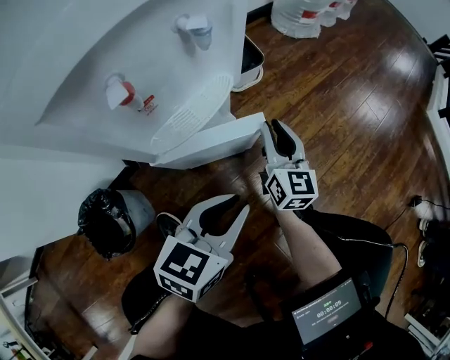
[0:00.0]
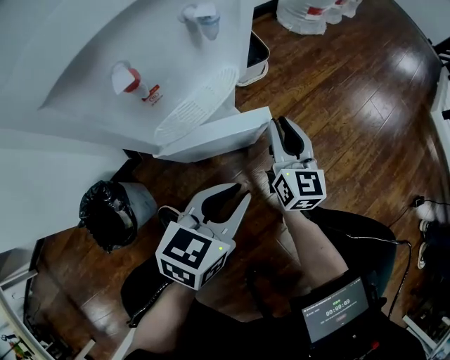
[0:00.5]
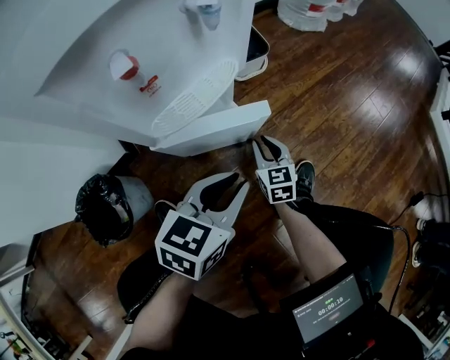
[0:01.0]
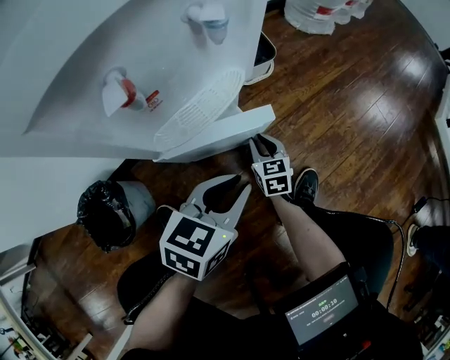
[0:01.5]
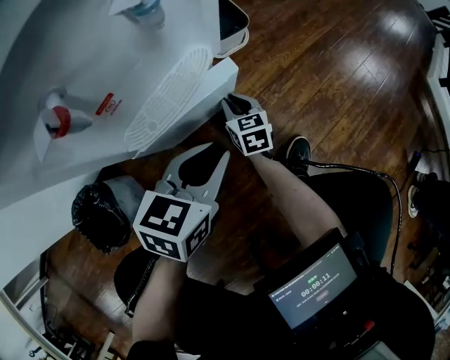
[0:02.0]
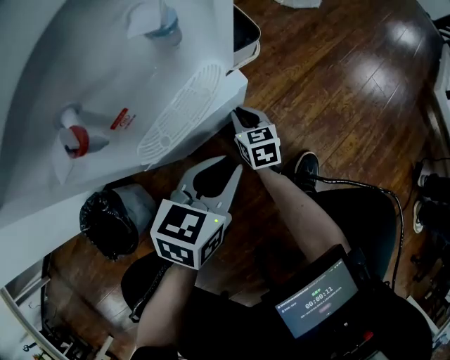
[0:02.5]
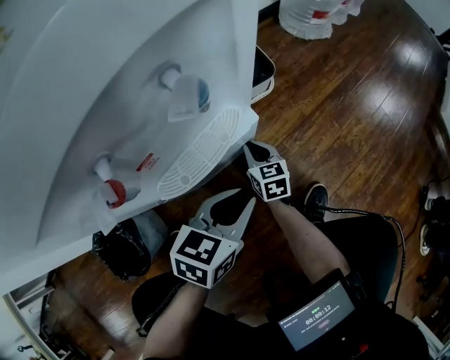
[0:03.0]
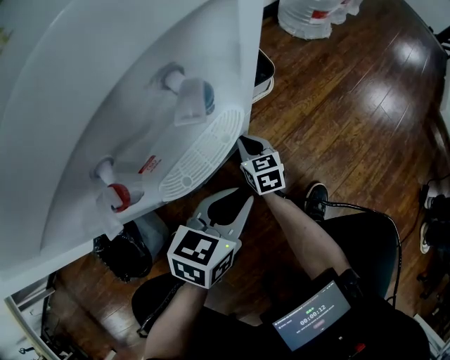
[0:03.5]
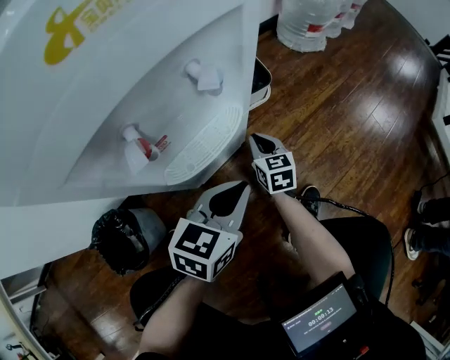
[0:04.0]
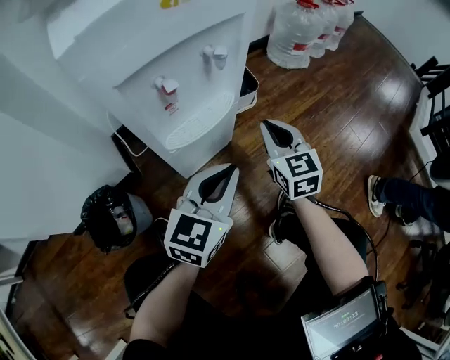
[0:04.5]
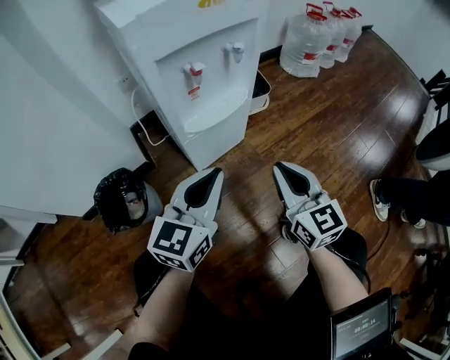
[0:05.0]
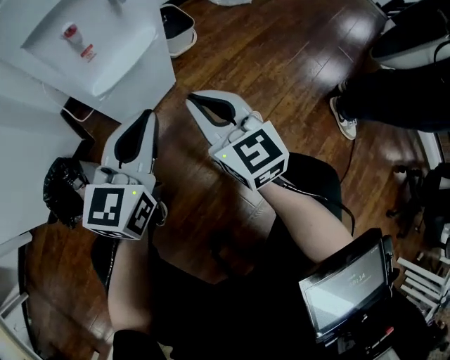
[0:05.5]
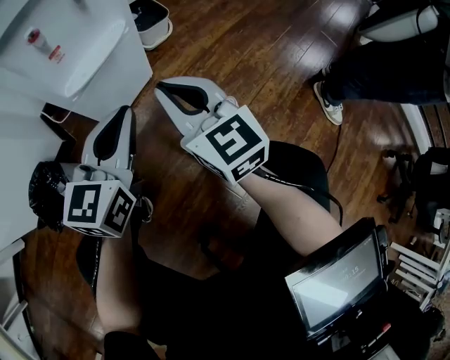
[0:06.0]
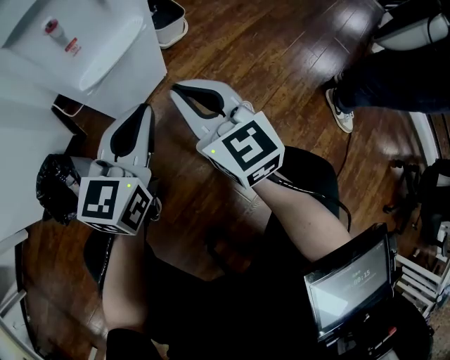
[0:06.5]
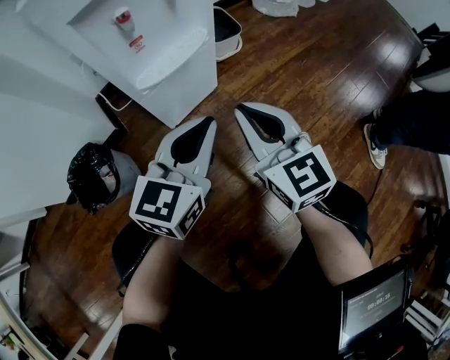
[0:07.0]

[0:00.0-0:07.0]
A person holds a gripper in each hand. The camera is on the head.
0:00.0 to 0:02.0: The right gripper goes some 20 cm downward and to the left, and swivels about 30 degrees; the left gripper moves forward, approximately 5 cm.
0:02.0 to 0:03.5: There are only small adjustments of the grippers.
0:03.5 to 0:05.0: The right gripper travels upward and backward by approximately 40 cm, and turns by approximately 30 degrees; the left gripper heads upward and backward, covering some 20 cm, and turns by approximately 30 degrees.
0:05.0 to 0:07.0: The left gripper goes roughly 5 cm to the right.

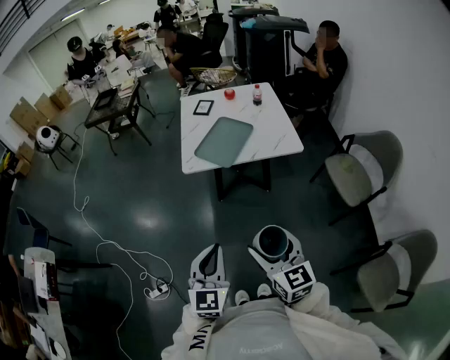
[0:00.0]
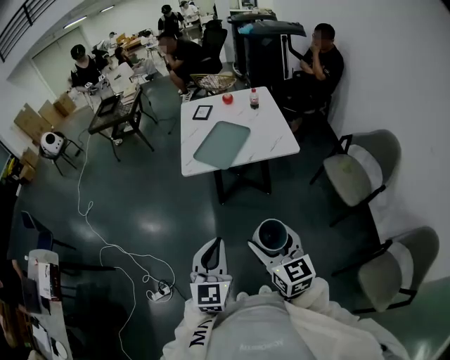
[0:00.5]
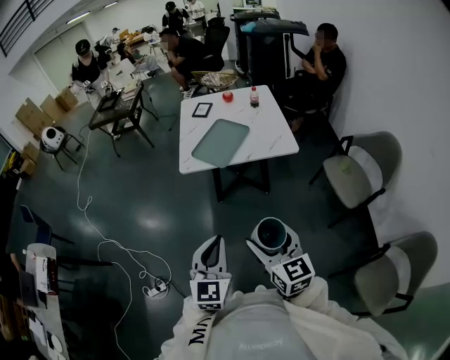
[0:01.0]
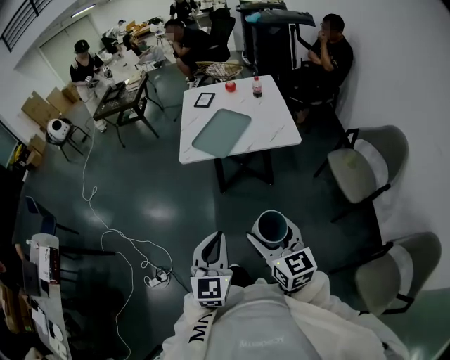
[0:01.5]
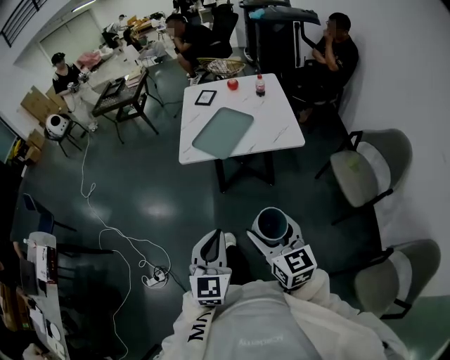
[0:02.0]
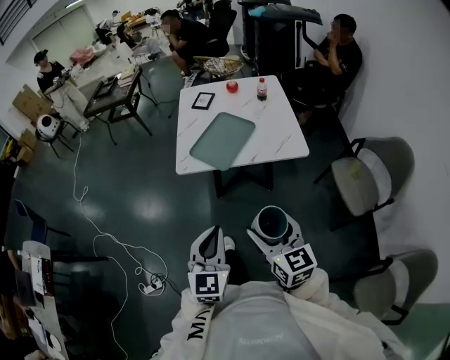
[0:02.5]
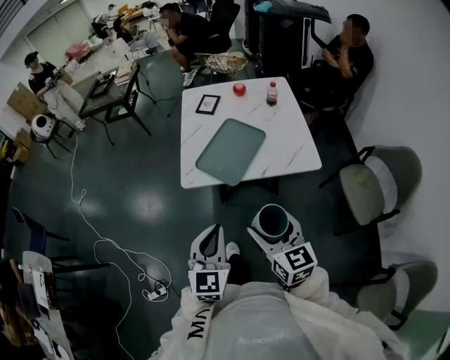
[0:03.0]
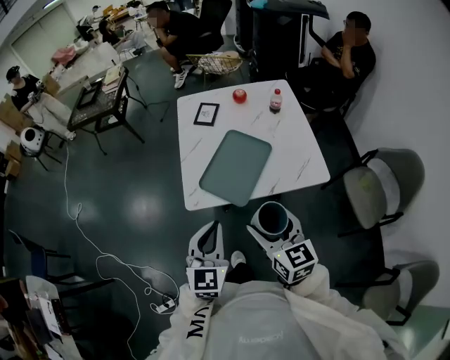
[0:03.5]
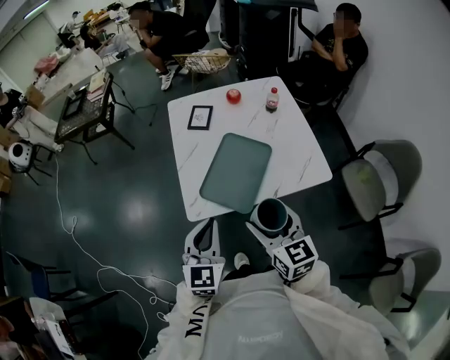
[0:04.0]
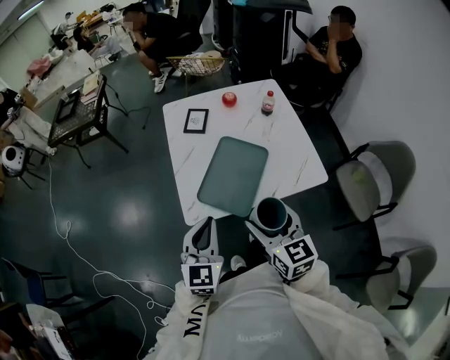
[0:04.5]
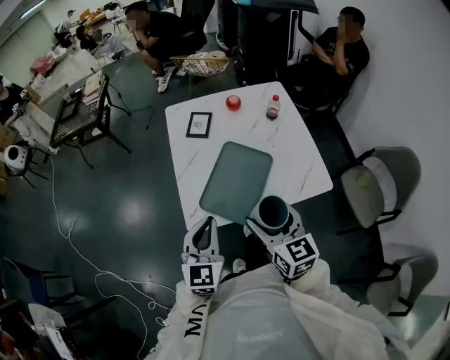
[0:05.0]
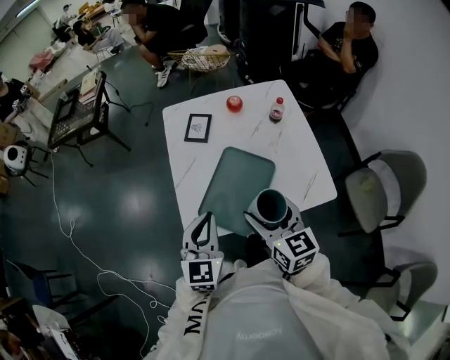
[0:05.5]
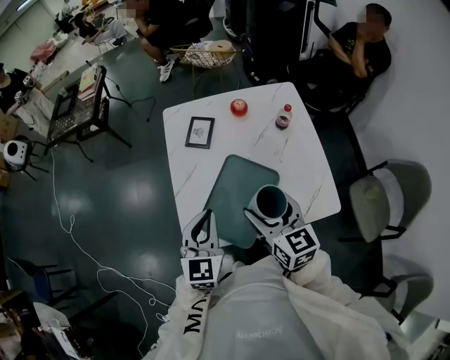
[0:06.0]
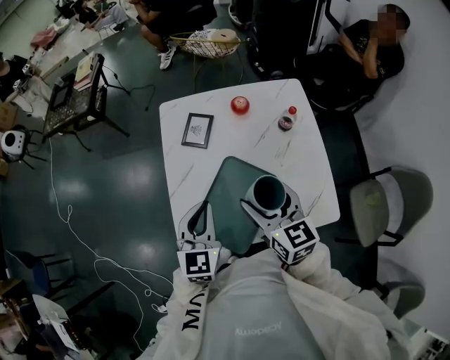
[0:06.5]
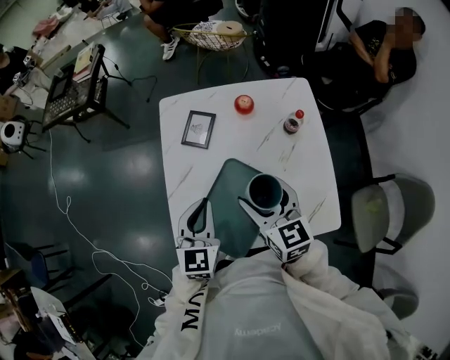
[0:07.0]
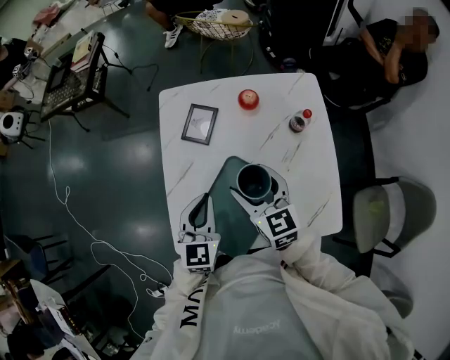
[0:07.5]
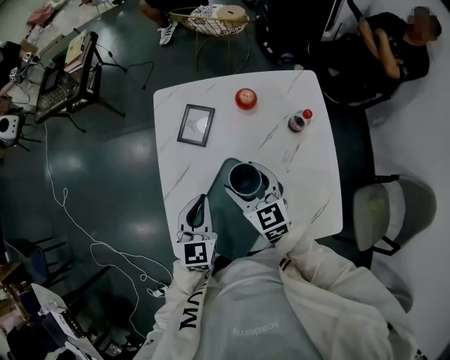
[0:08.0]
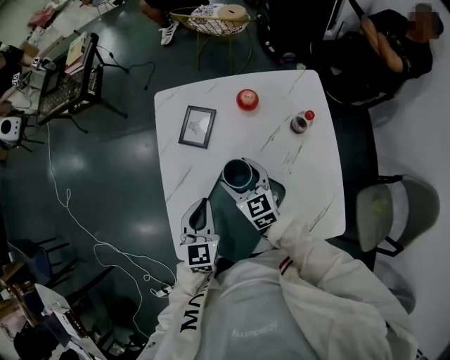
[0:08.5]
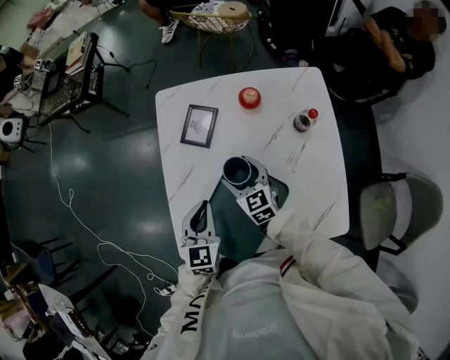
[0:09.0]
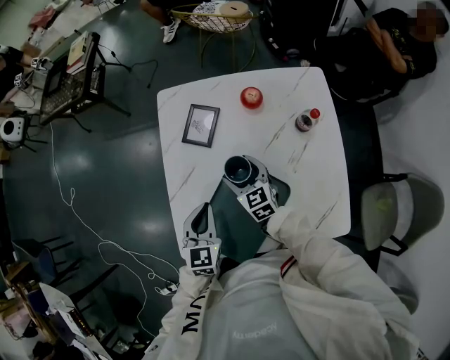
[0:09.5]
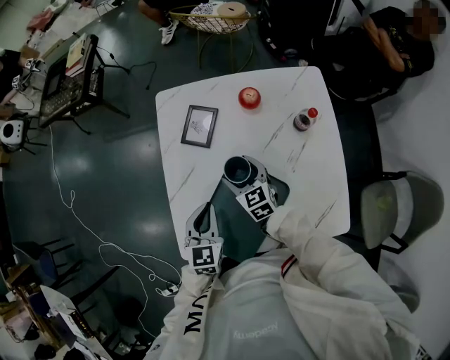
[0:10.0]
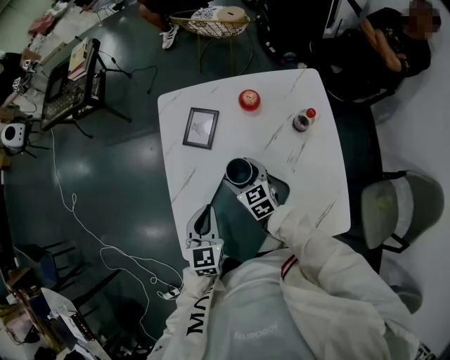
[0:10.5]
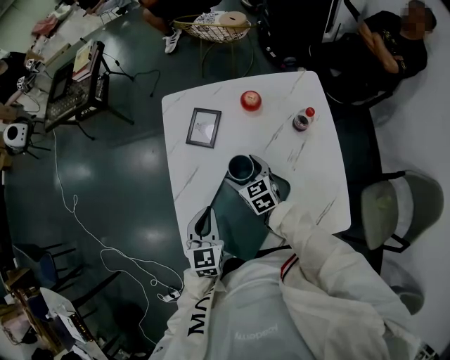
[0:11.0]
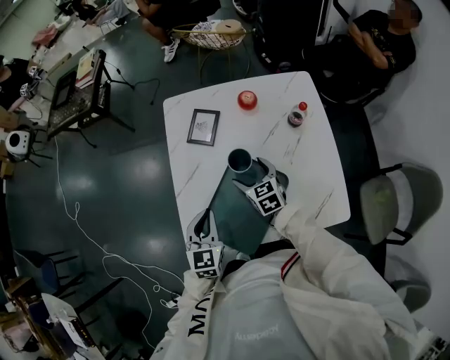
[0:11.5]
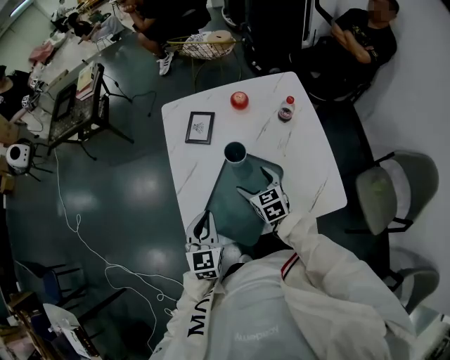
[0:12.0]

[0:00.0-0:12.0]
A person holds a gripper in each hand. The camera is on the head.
0:00.0 to 0:02.0: Both grippers move to the right, about 5 cm.
0:02.0 to 0:04.0: The grippers both shift forward by roughly 40 cm.
0:04.0 to 0:06.0: Both grippers travel together forward, some 20 cm.
0:06.0 to 0:08.0: Both grippers move forward and downward, roughly 20 cm.
0:08.0 to 0:10.0: The right gripper heads downward, covering approximately 10 cm.
0:10.0 to 0:12.0: The two grippers go approximately 10 cm backward.

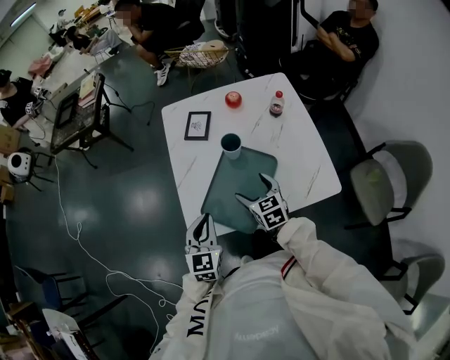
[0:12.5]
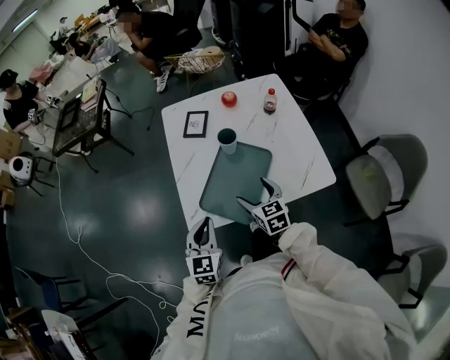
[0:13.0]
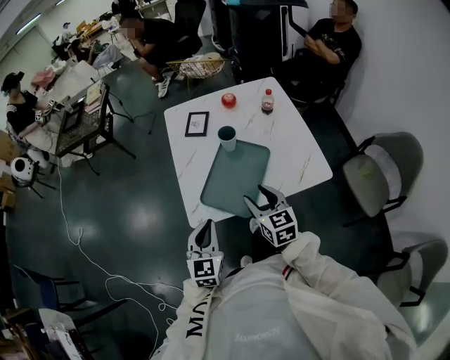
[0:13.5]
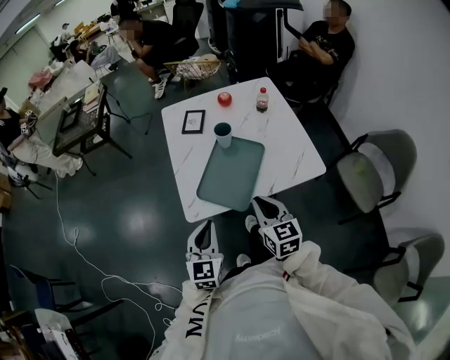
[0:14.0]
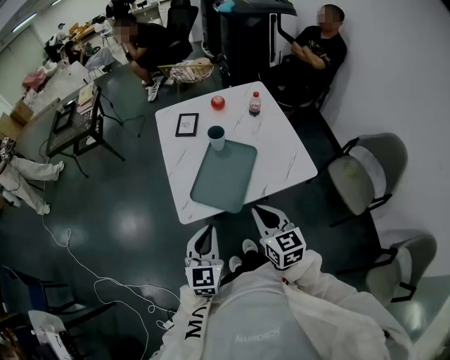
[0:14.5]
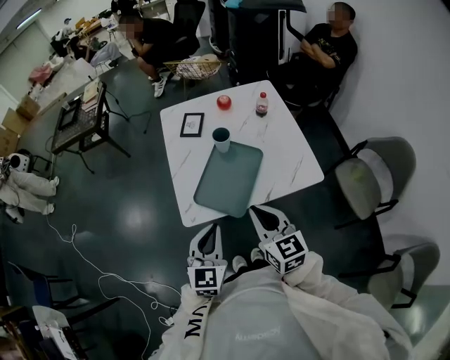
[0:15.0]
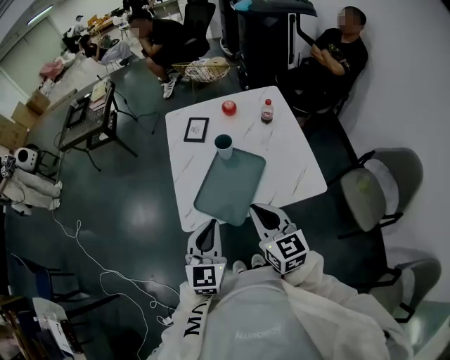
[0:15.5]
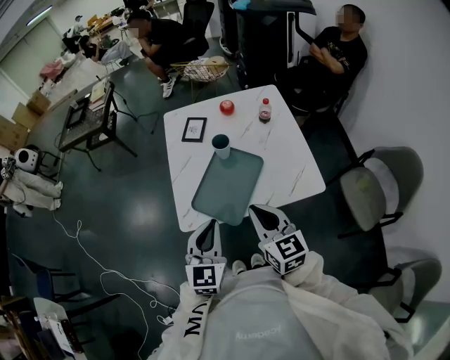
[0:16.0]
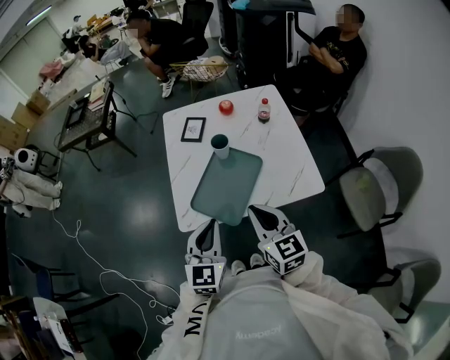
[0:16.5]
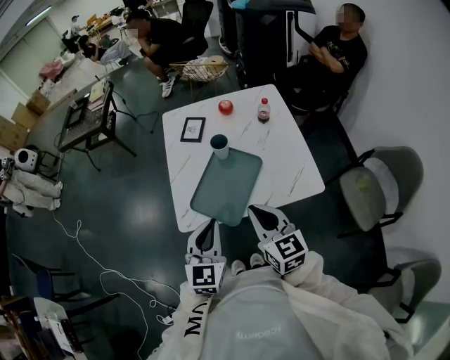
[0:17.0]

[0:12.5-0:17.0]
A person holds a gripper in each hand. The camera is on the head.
0:12.5 to 0:14.5: The right gripper shifts approximately 25 cm backward and upward, and closes; the left gripper shifts some 15 cm backward.
0:14.5 to 0:17.0: The left gripper moves forward and to the right, about 10 cm, while the right gripper heads forward, covering approximately 5 cm.

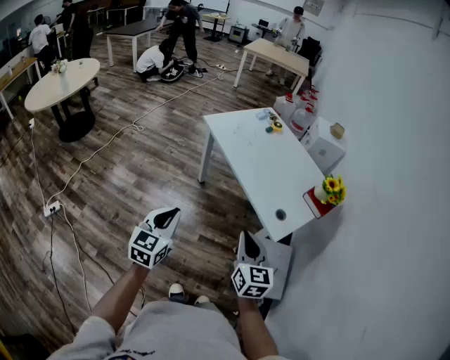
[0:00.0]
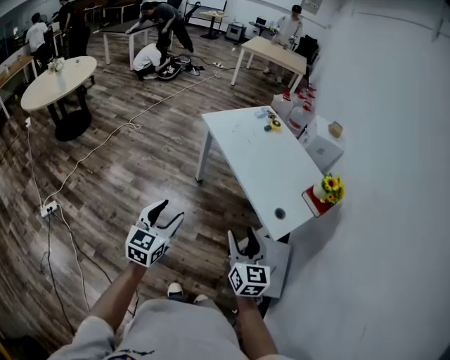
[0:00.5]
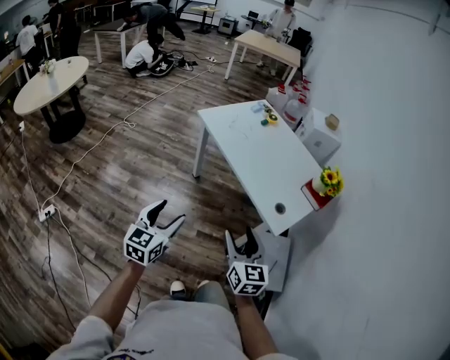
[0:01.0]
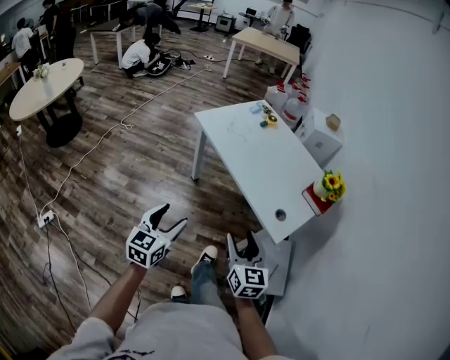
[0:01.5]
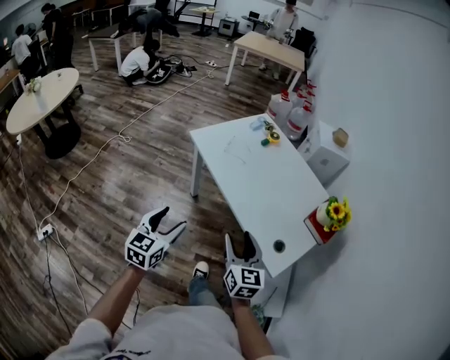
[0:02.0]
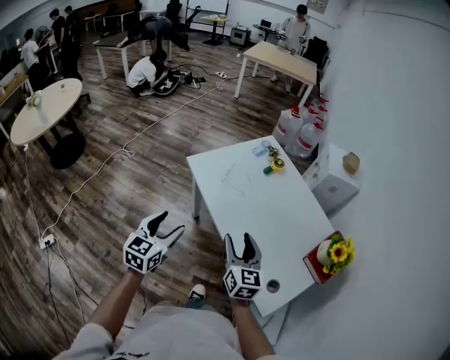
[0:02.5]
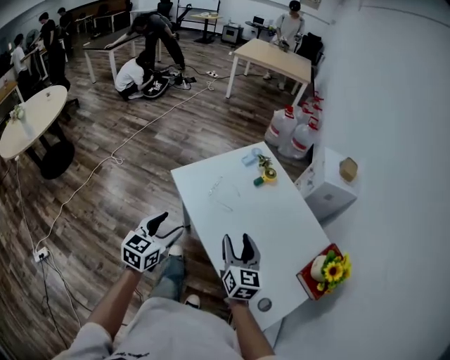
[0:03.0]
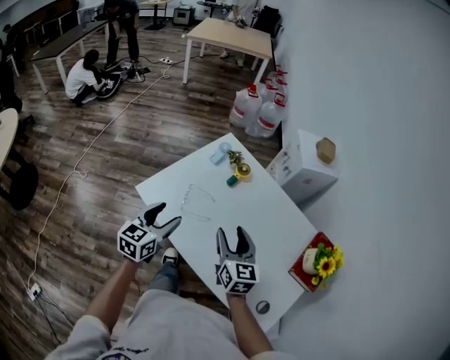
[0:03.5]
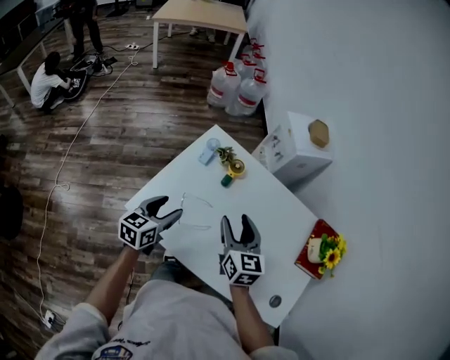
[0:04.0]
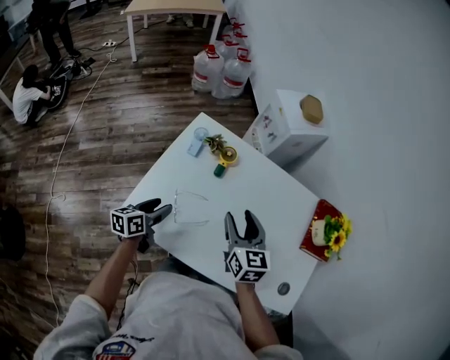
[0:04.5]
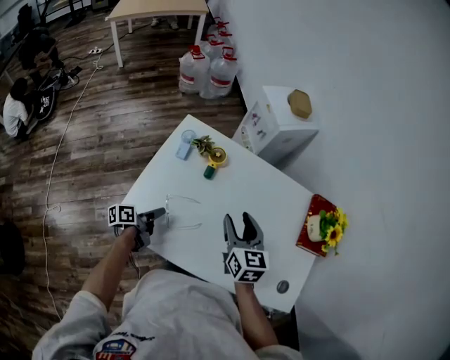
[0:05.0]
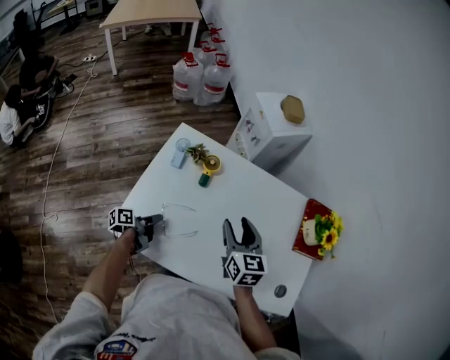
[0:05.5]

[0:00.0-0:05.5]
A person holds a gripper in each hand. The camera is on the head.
0:00.0 to 0:02.0: The grippers both shift forward by approximately 25 cm. The left gripper opens up. The right gripper opens up.
0:02.0 to 0:03.5: The pair of grippers is taken forward, about 50 cm.
0:03.5 to 0:05.5: The left gripper travels downward by approximately 25 cm, rotates around the line of its fingers by some 60 degrees, counterclockwise from behind, and closes its fingers. The right gripper moves approximately 15 cm, and changes its angle by about 20 degrees.
